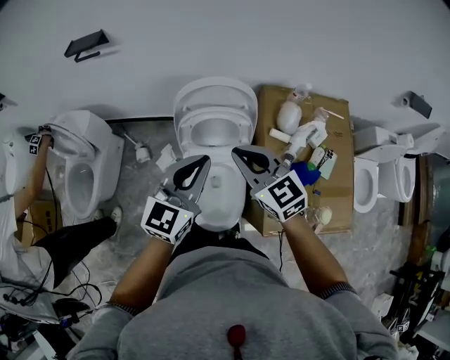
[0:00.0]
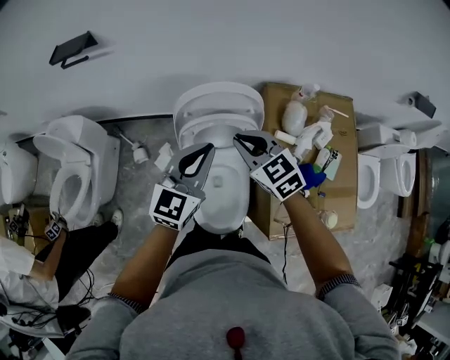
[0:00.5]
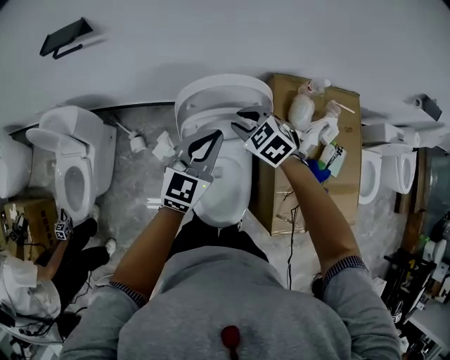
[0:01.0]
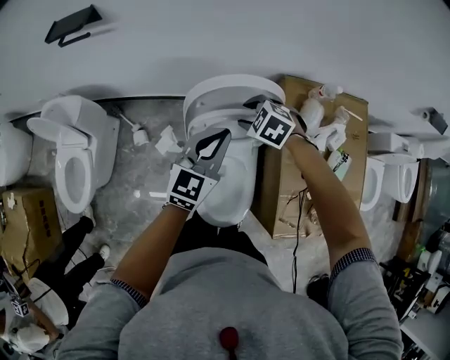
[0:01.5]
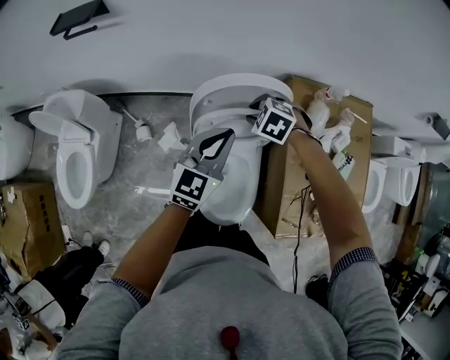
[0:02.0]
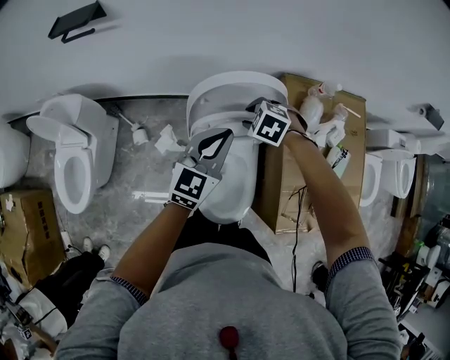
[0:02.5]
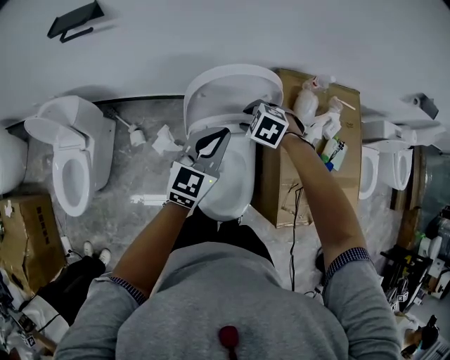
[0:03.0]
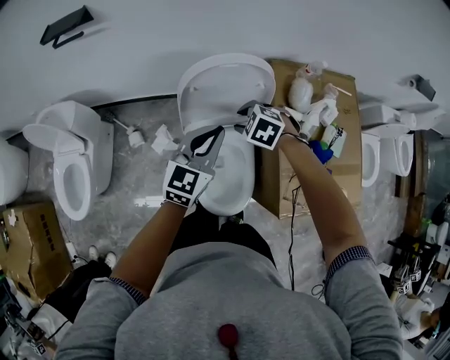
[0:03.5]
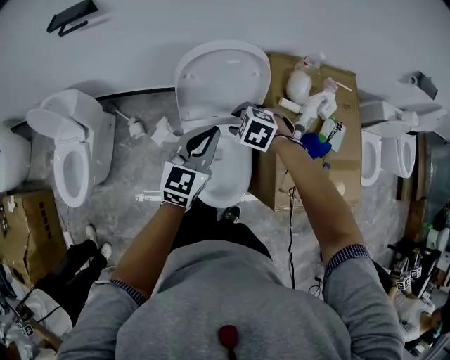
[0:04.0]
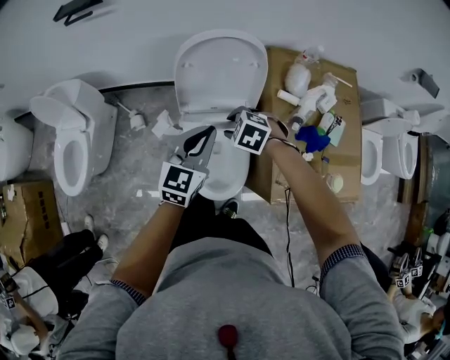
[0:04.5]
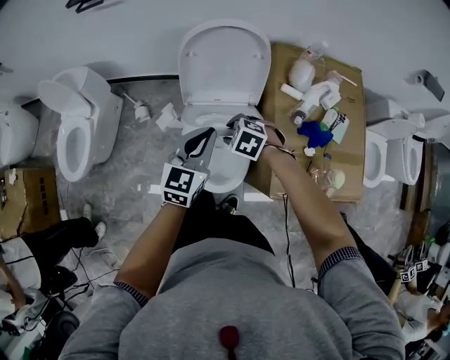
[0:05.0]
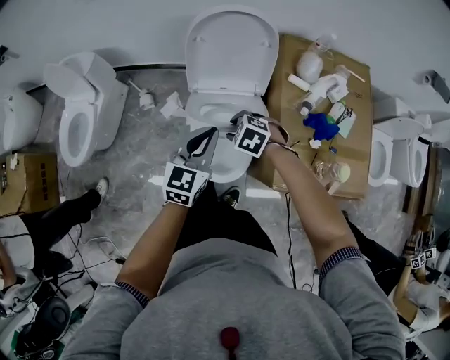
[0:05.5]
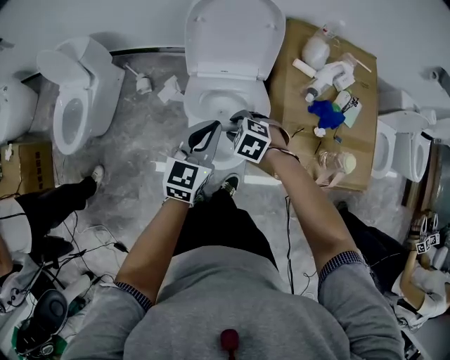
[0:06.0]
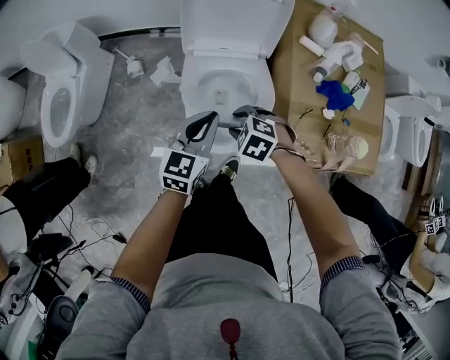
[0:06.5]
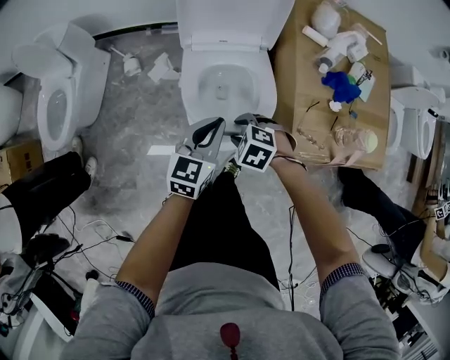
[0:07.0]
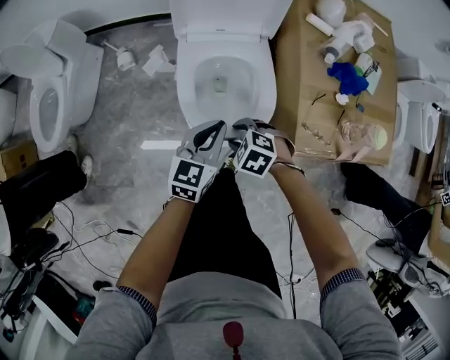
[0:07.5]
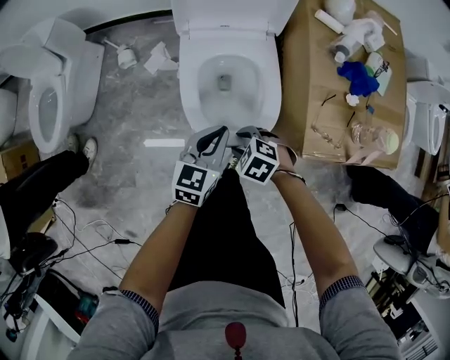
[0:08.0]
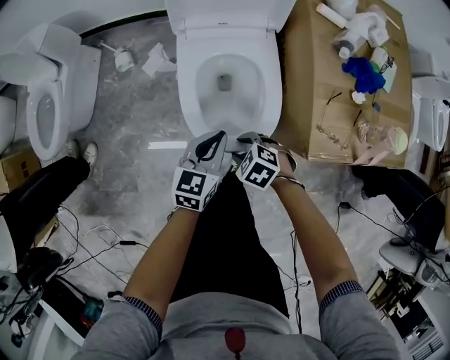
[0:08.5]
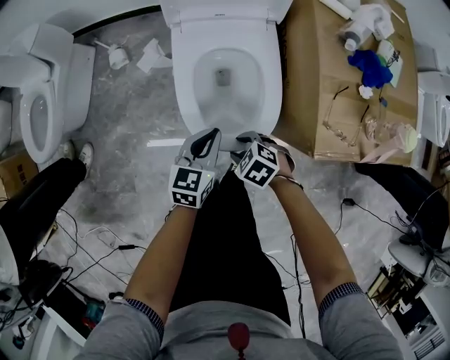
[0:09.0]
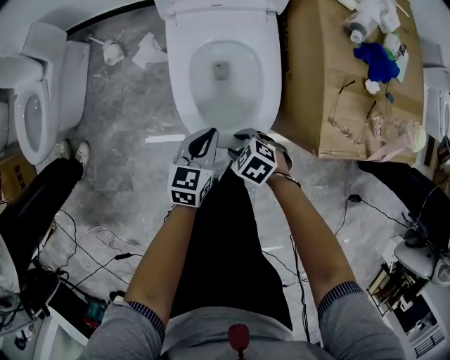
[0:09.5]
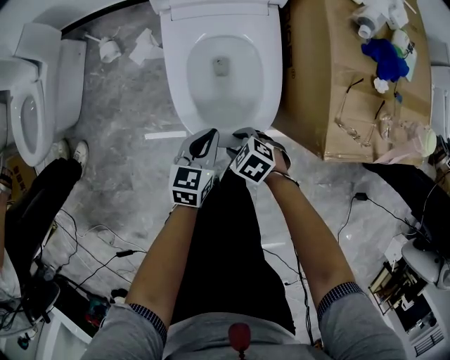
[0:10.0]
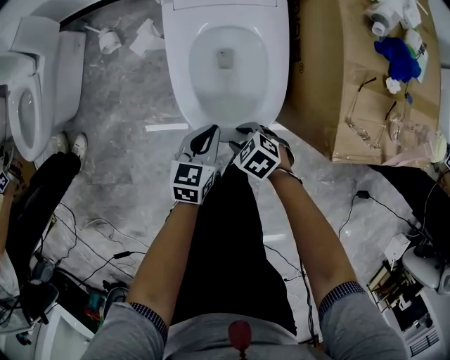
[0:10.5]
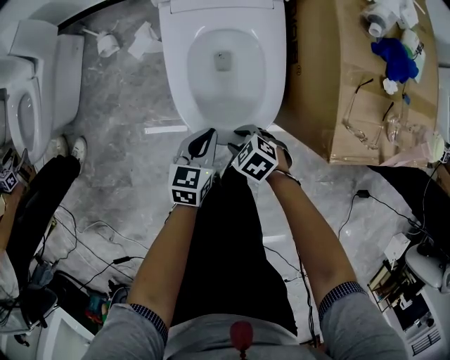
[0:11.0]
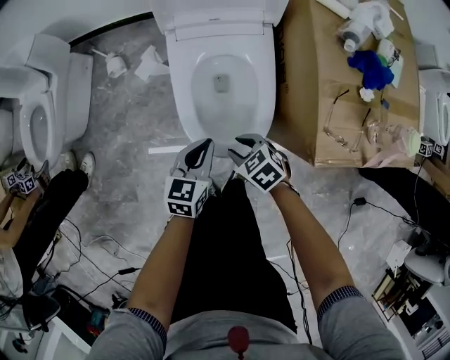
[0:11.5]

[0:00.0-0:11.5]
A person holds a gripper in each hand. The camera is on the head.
0:00.0 to 0:02.0: The right gripper moves downward and forward, some 30 cm, tips its fingers downward by roughly 50 degrees, and opens, while the left gripper heads forward and downward, covering about 20 cm.
0:02.0 to 0:04.0: Both grippers move backward, roughly 15 cm.
0:04.0 to 0:06.0: The two grippers go about 20 cm backward and downward.
0:06.0 to 0:07.5: The left gripper travels downward by about 15 cm, while the right gripper travels downward and backward by approximately 15 cm.
0:07.5 to 0:09.5: Both grippers move downward, approximately 15 cm.
0:09.5 to 0:11.5: The left gripper moves about 5 cm downward and comes back; the right gripper changes place by about 5 cm.

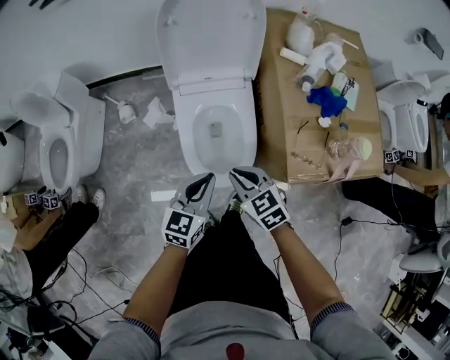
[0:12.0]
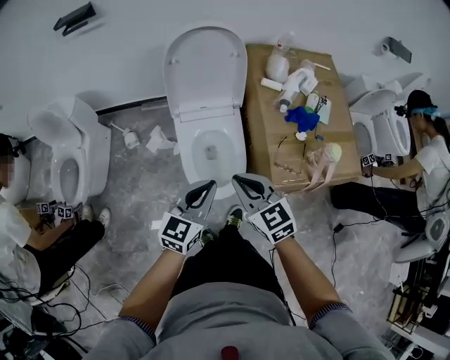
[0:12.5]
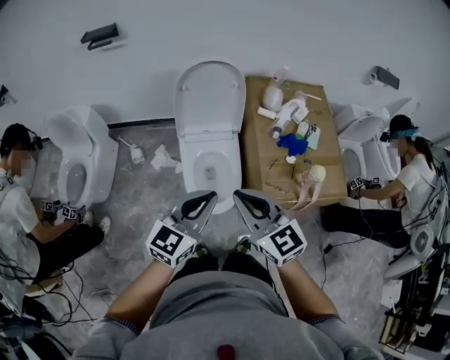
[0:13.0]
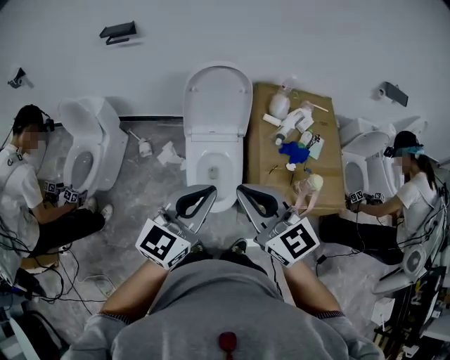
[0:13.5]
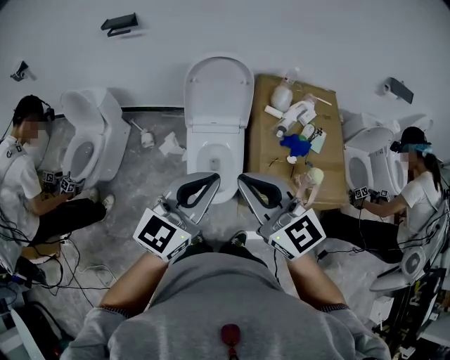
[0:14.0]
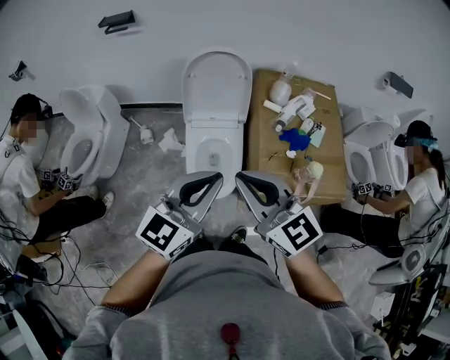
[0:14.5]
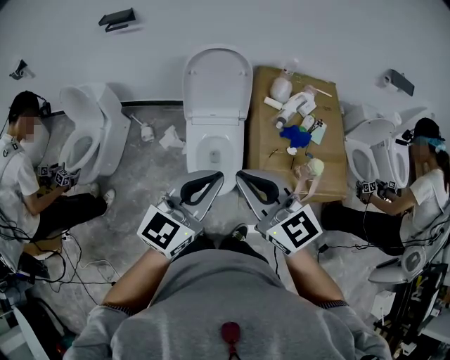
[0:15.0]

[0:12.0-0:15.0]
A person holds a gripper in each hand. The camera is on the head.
0:12.0 to 0:13.5: Both grippers move upward, roughly 40 cm. The right gripper points its fingers approximately 30 degrees further upward. Meanwhile the left gripper swivels some 20 degrees.
0:13.5 to 0:15.0: There are only small adjustments of the grippers.

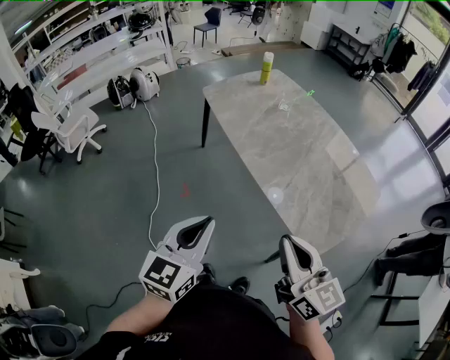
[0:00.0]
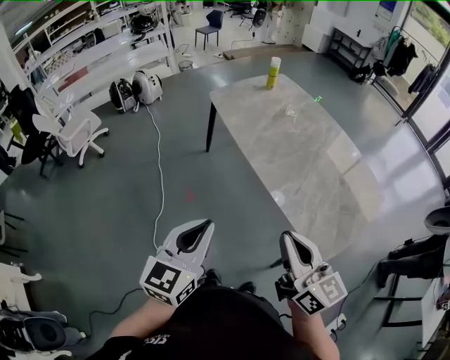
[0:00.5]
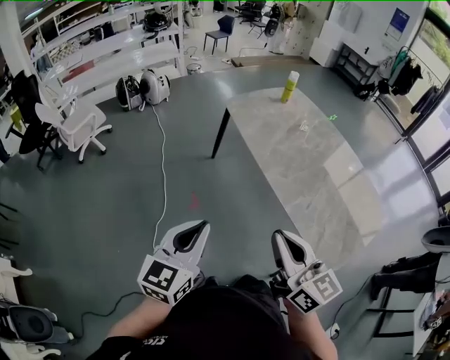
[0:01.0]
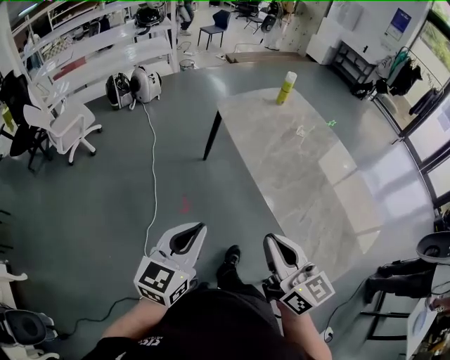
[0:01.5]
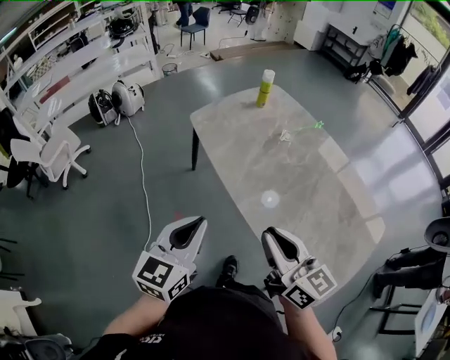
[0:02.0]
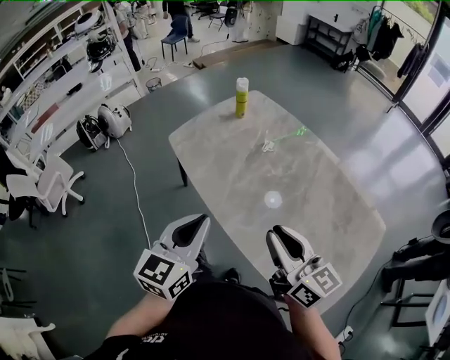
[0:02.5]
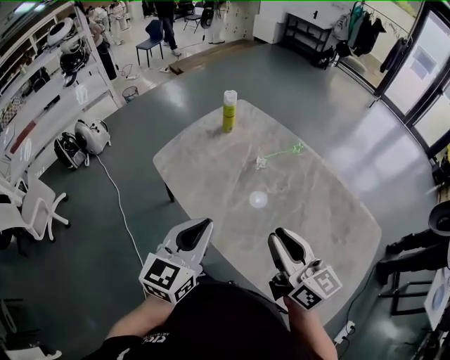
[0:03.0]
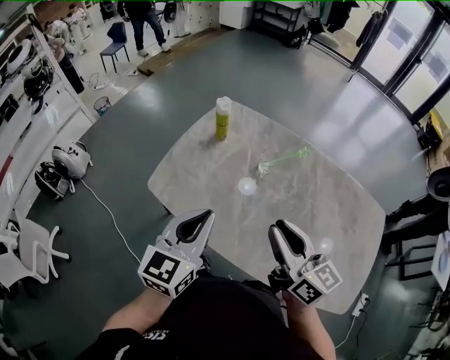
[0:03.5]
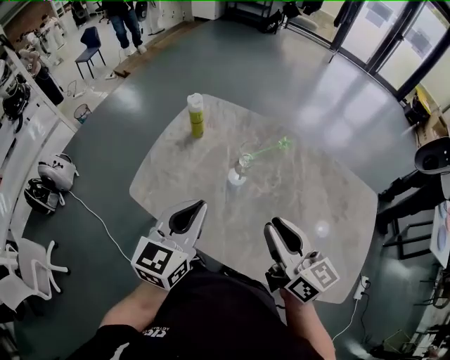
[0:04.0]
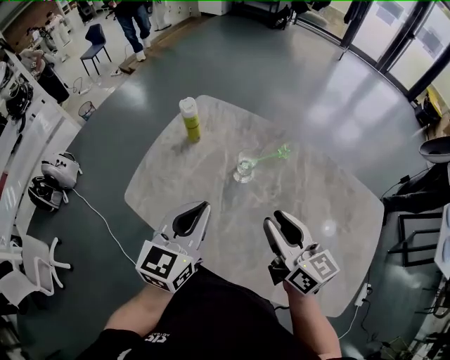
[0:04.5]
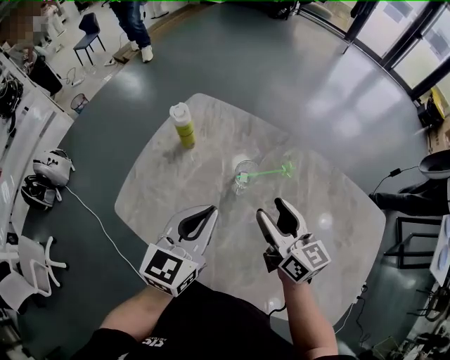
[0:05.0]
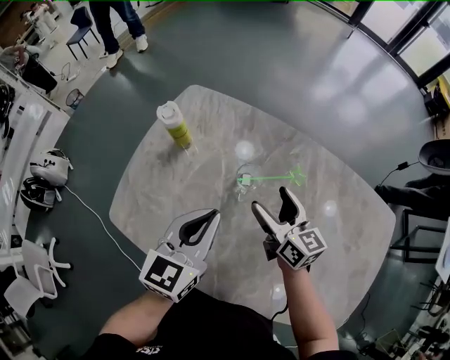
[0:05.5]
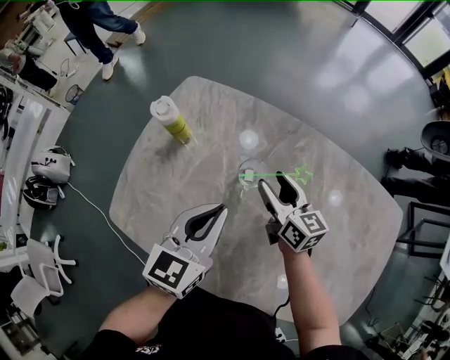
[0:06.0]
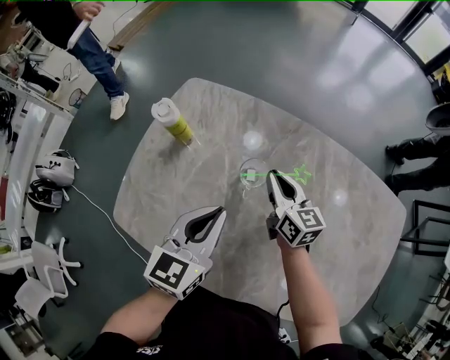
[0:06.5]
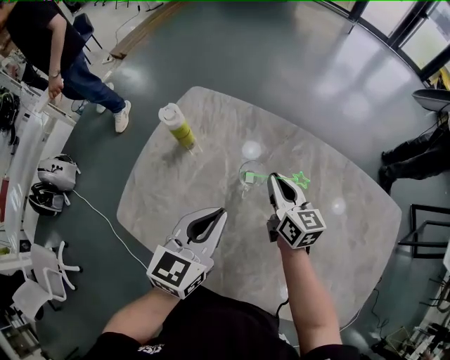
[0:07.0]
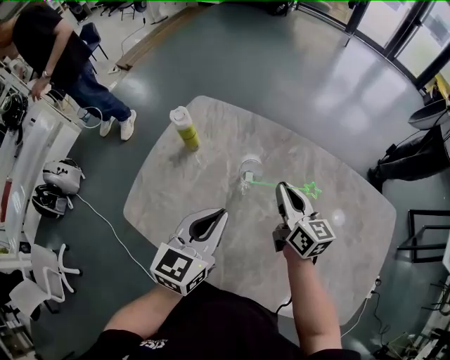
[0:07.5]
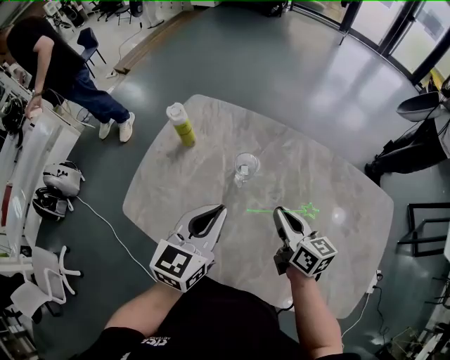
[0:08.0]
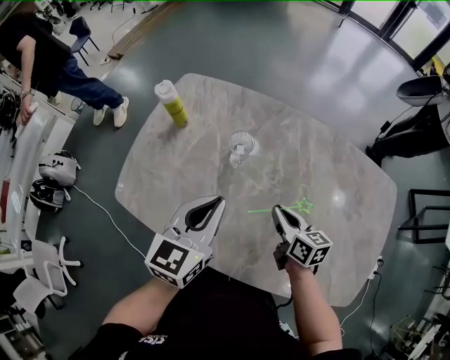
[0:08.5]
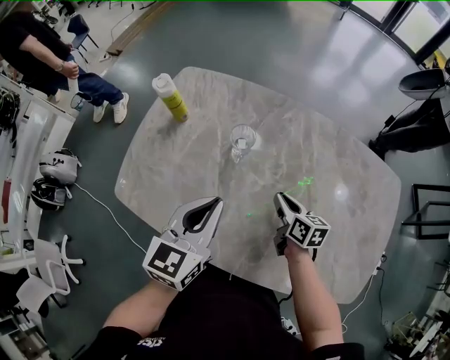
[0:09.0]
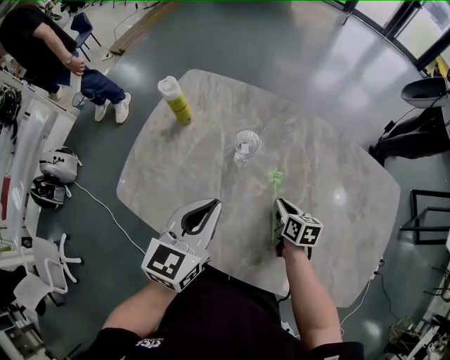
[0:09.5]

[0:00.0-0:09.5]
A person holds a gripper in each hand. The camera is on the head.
0:00.0 to 0:02.0: The two grippers go about 25 cm forward.
0:02.0 to 0:04.0: The left gripper moves approximately 35 cm, and turns by approximately 30 degrees. Meanwhile the right gripper moves some 25 cm, and rotates about 30 degrees.
0:04.0 to 0:05.5: The right gripper shifts some 30 cm forward and downward, and opens its fingers. Meanwhile the left gripper heads forward, downward and to the right, covering approximately 20 cm.
0:05.5 to 0:07.5: The right gripper moves roughly 5 cm, and closes its fingers.
0:07.5 to 0:09.5: The right gripper shifts approximately 20 cm downward and backward, and tips its fingers downward by some 30 degrees.

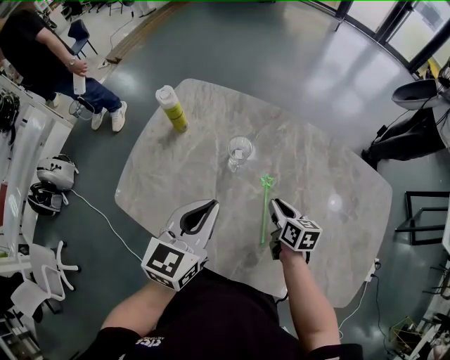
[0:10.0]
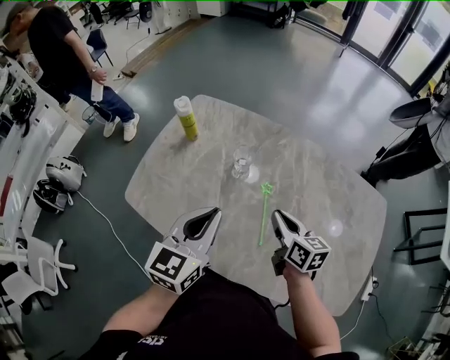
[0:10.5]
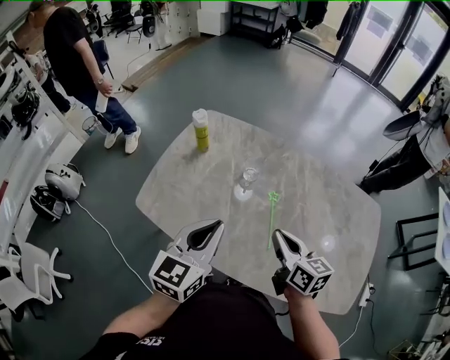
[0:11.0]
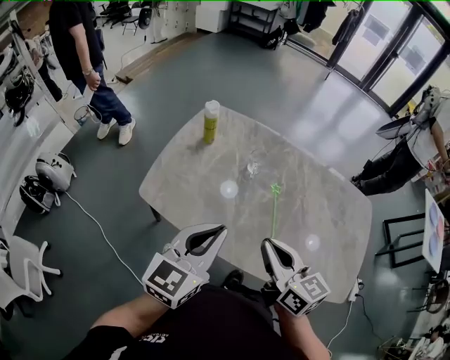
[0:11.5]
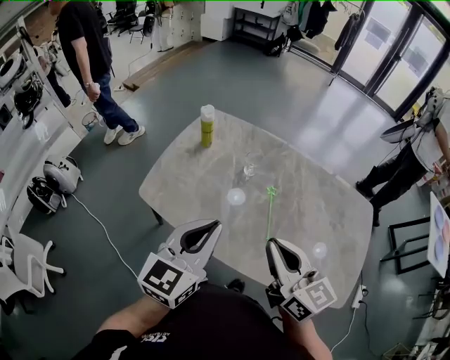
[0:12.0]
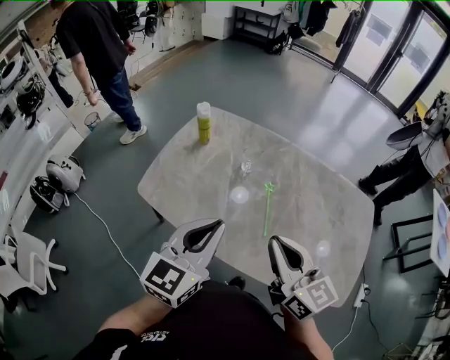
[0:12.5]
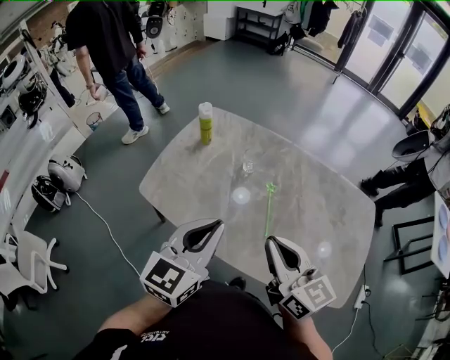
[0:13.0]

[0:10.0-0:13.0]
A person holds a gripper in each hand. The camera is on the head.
0:10.0 to 0:11.5: The left gripper moves backward, upward and to the left, about 20 cm. The right gripper travels upward, backward and to the left by about 35 cm, and turns by about 30 degrees.
0:11.5 to 0:13.0: The right gripper moves to the right, approximately 5 cm. The left gripper changes place by about 5 cm.
